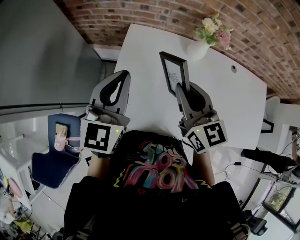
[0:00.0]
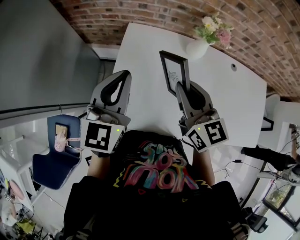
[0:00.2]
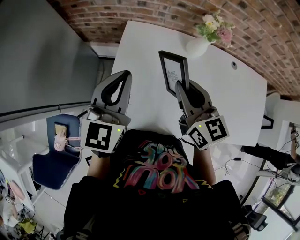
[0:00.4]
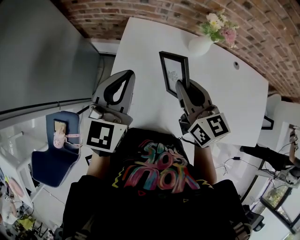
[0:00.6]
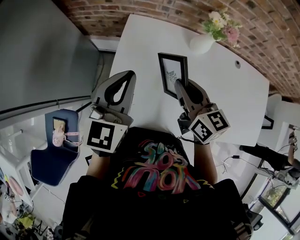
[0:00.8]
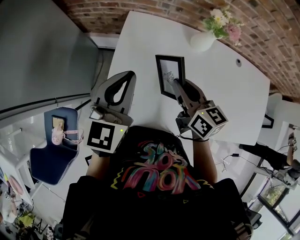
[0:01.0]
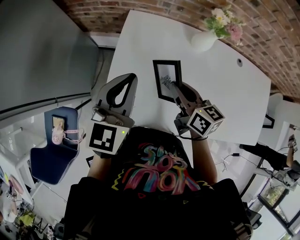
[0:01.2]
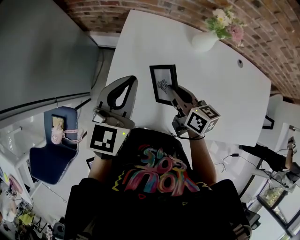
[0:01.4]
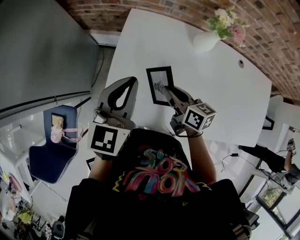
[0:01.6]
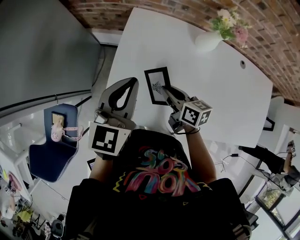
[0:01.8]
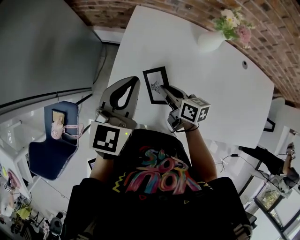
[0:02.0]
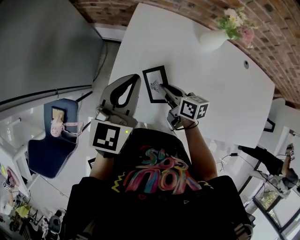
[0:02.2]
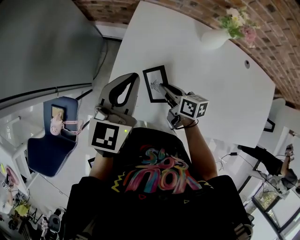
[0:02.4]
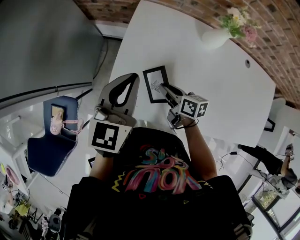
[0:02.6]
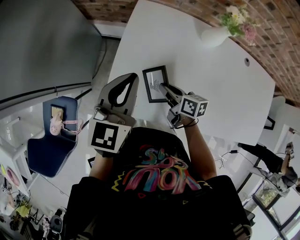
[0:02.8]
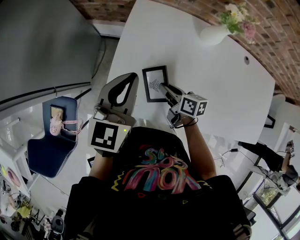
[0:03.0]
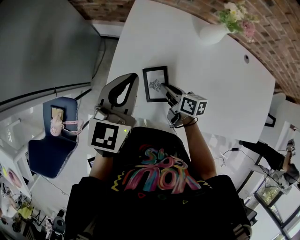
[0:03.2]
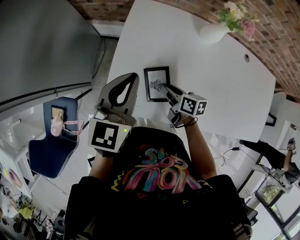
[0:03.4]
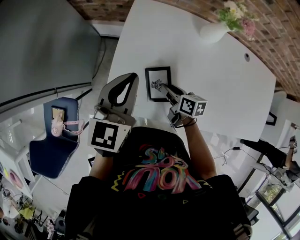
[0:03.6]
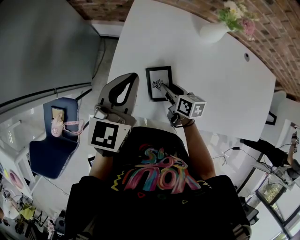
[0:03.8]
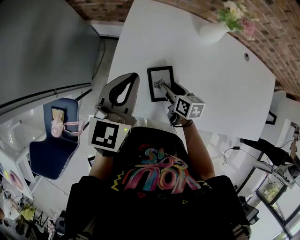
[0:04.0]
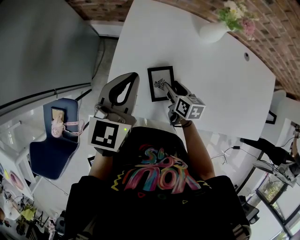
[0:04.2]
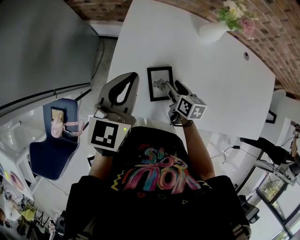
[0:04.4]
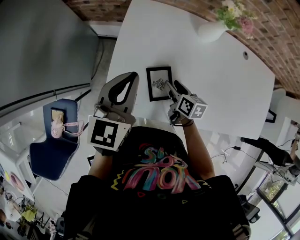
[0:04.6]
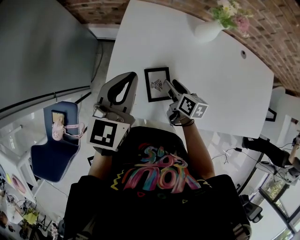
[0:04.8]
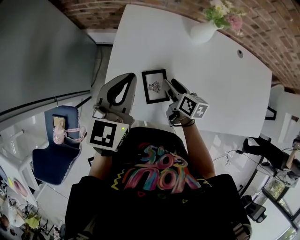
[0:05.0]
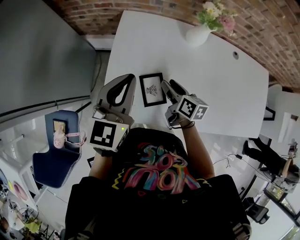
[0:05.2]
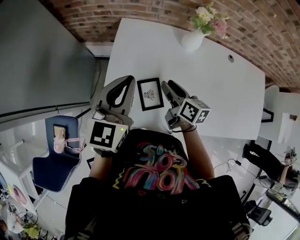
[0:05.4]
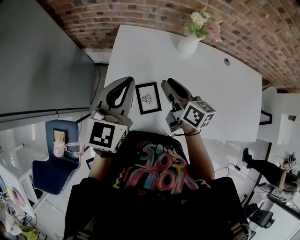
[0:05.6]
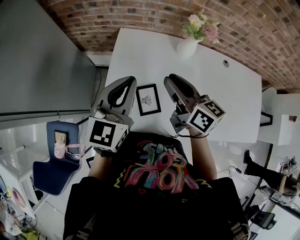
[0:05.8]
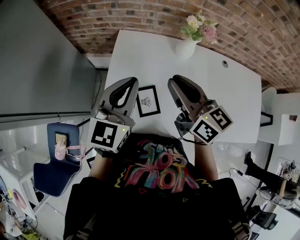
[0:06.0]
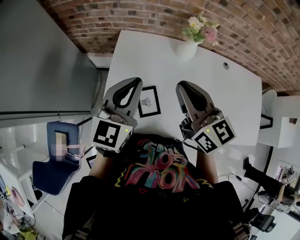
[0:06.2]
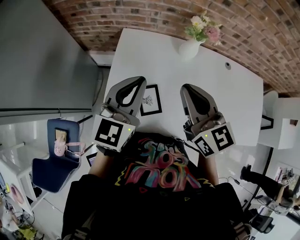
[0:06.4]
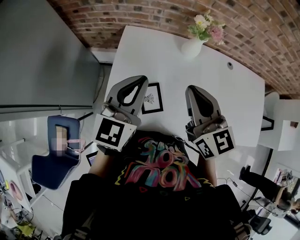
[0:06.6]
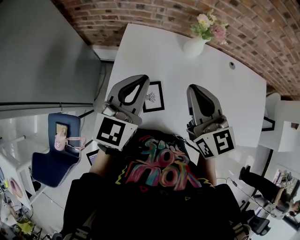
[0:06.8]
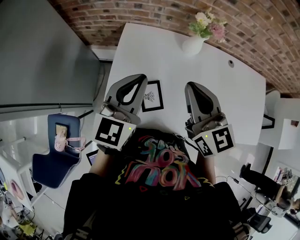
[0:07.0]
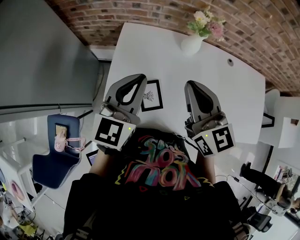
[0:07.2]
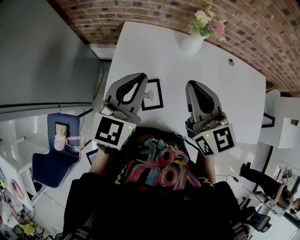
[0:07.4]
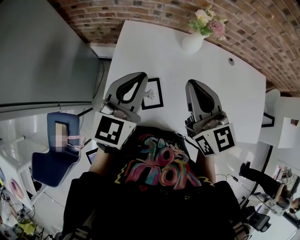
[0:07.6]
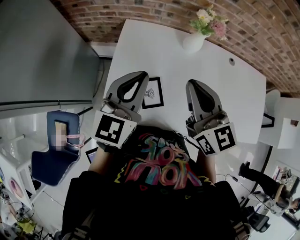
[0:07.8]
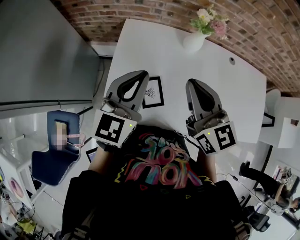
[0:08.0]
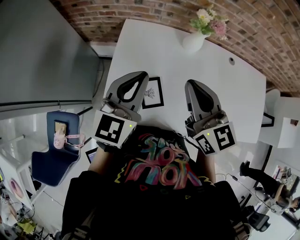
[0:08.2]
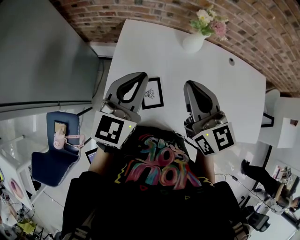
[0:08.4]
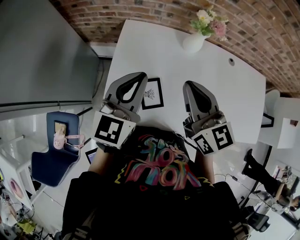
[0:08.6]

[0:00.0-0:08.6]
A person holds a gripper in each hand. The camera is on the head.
0:00.0 to 0:01.4: The left gripper goes approximately 5 cm downward, while the right gripper shifts about 15 cm downward, and rotates approximately 40 degrees.
0:01.4 to 0:02.8: The right gripper travels downward by approximately 10 cm.
0:02.8 to 0:04.4: The right gripper shifts by approximately 5 cm, turns by approximately 20 degrees, and opens up.
0:04.4 to 0:05.8: The left gripper moves upward, approximately 10 cm. The right gripper goes about 30 cm upward, angles its fingers upward, by approximately 30 degrees, and closes up.
0:05.8 to 0:07.2: The right gripper shifts about 5 cm upward, turns by some 30 degrees, and closes up.
0:07.2 to 0:08.6: The grippers stay close to where they were, moving slightly.

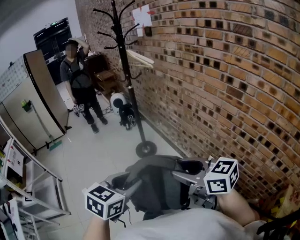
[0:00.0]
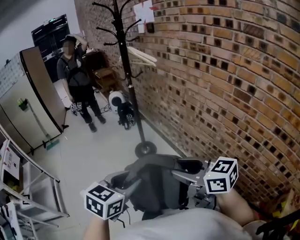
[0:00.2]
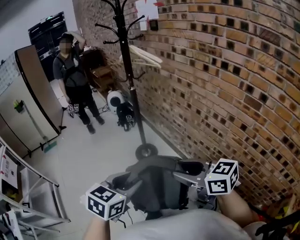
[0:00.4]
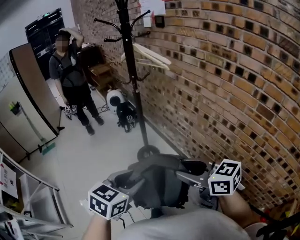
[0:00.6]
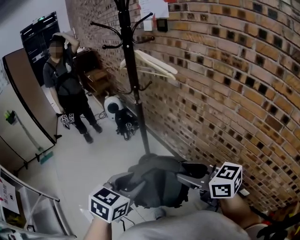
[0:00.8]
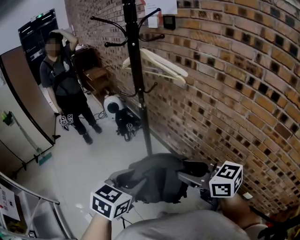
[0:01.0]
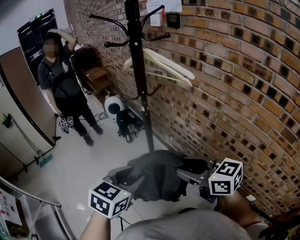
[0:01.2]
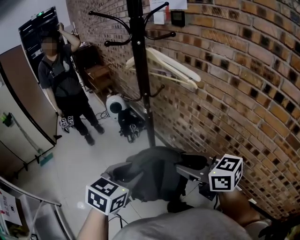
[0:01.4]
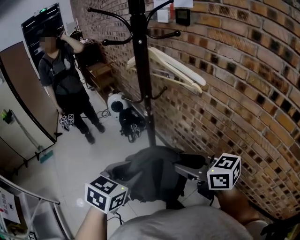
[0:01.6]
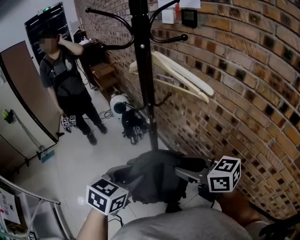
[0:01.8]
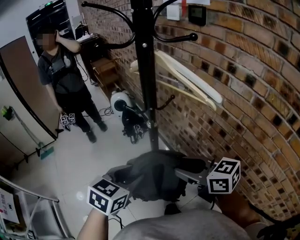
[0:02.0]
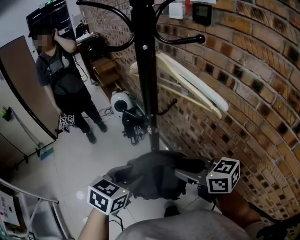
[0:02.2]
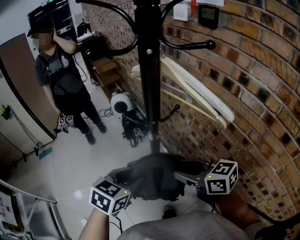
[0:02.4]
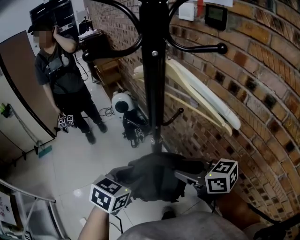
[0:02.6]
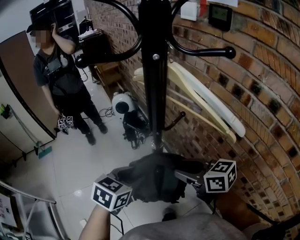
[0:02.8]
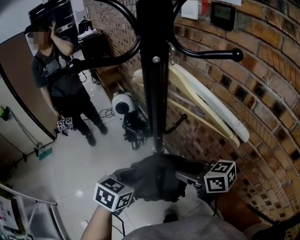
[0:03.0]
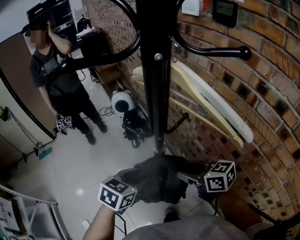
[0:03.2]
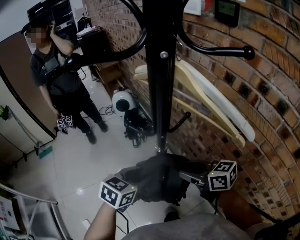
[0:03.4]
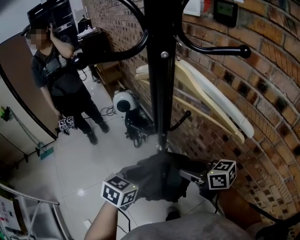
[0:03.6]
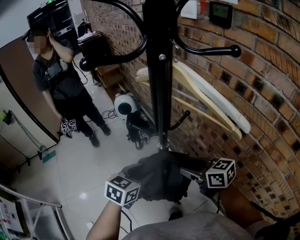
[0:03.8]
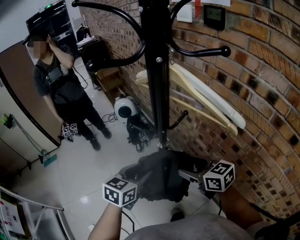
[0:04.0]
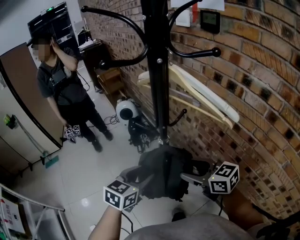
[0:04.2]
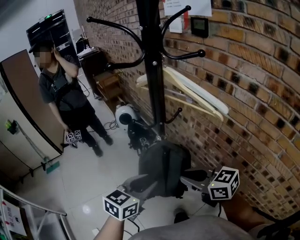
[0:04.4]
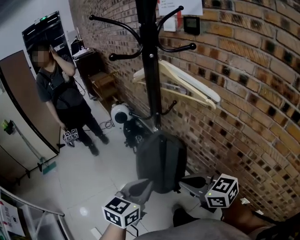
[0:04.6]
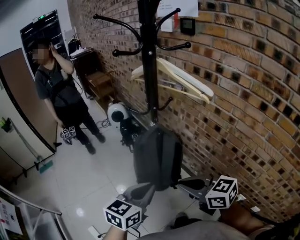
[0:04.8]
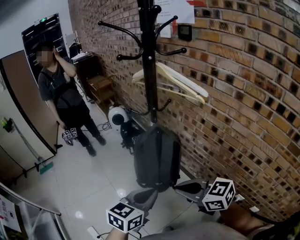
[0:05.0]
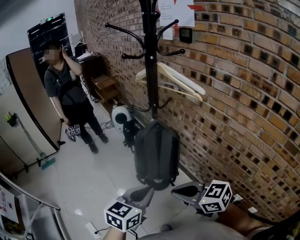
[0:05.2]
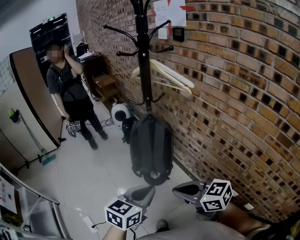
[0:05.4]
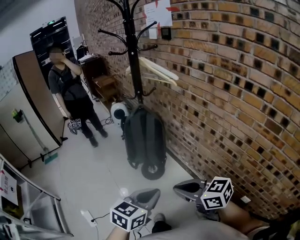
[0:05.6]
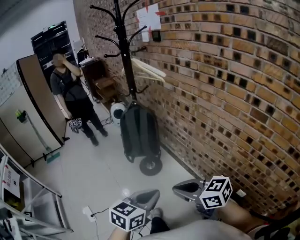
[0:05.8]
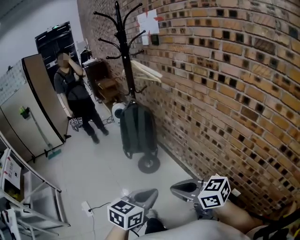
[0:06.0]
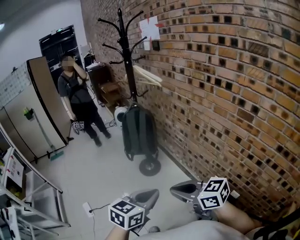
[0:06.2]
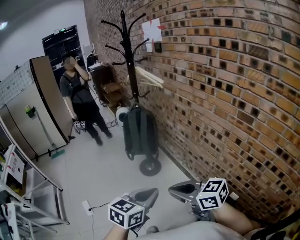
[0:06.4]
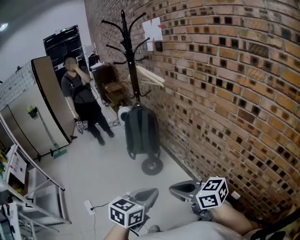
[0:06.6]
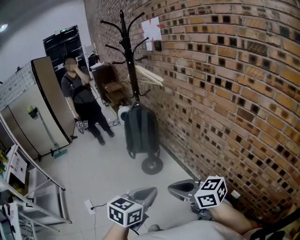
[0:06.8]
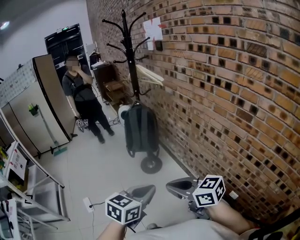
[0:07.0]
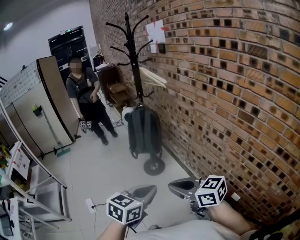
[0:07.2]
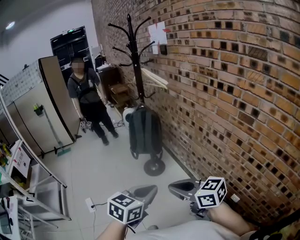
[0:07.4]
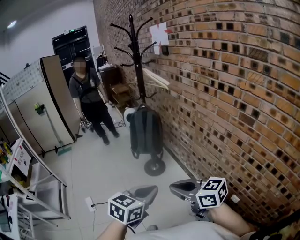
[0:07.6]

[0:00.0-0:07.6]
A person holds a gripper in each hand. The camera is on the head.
0:00.0 to 0:01.6: The two grippers travel together, forward, roughly 50 cm.
0:01.6 to 0:03.0: The right gripper goes some 20 cm forward. The left gripper travels forward and downward by about 20 cm.
0:03.0 to 0:04.6: The grippers both shift backward by approximately 15 cm. The left gripper closes its fingers; the right gripper closes up.
0:04.6 to 0:06.0: The two grippers go some 40 cm backward.
0:06.0 to 0:07.6: The left gripper ends up approximately 5 cm from where it was. Meanwhile the right gripper ends up some 5 cm from where it was.

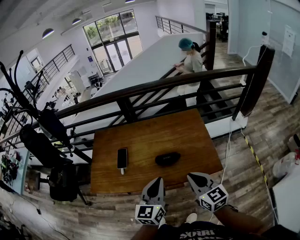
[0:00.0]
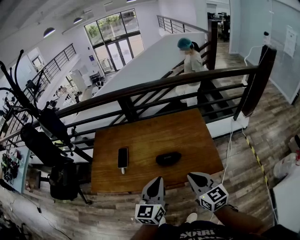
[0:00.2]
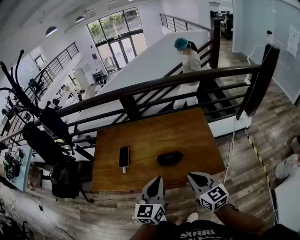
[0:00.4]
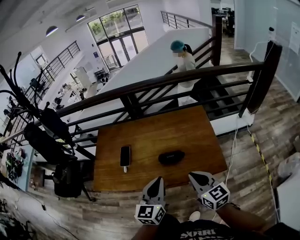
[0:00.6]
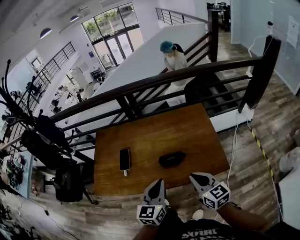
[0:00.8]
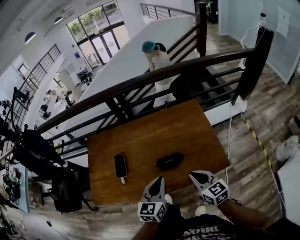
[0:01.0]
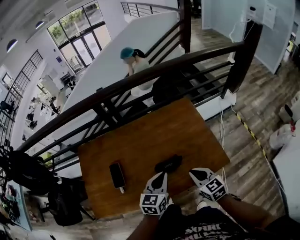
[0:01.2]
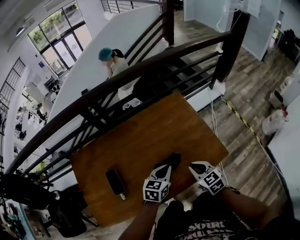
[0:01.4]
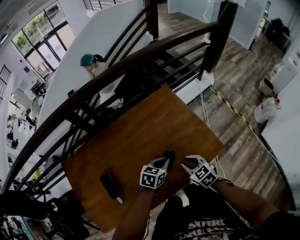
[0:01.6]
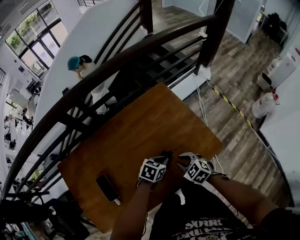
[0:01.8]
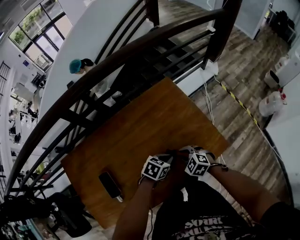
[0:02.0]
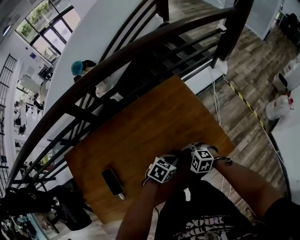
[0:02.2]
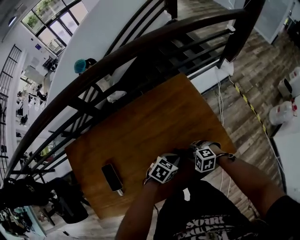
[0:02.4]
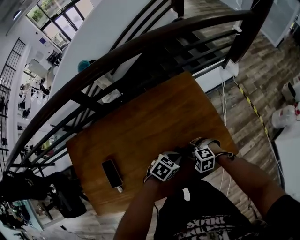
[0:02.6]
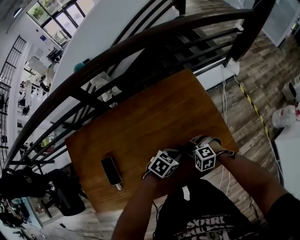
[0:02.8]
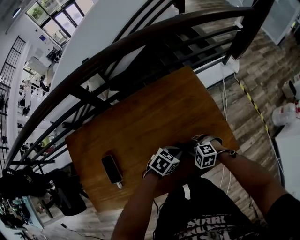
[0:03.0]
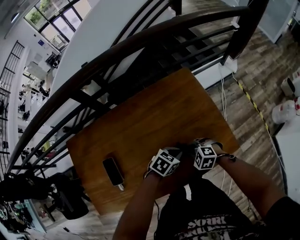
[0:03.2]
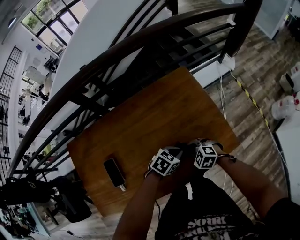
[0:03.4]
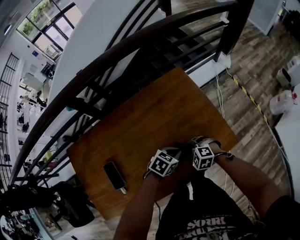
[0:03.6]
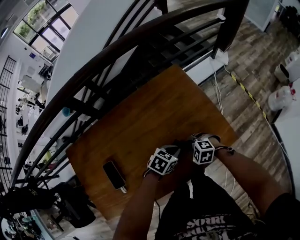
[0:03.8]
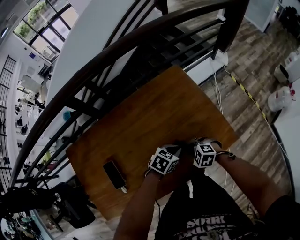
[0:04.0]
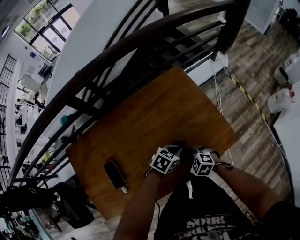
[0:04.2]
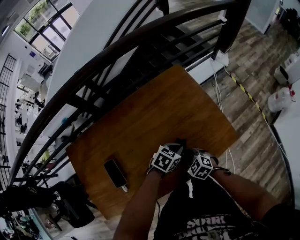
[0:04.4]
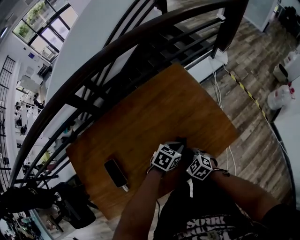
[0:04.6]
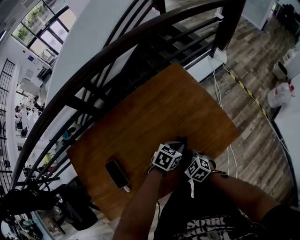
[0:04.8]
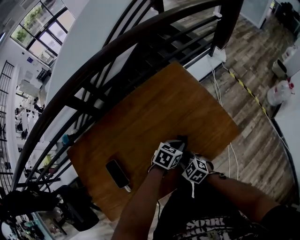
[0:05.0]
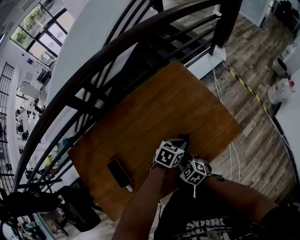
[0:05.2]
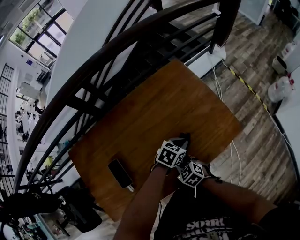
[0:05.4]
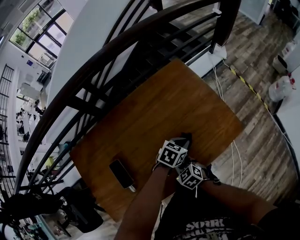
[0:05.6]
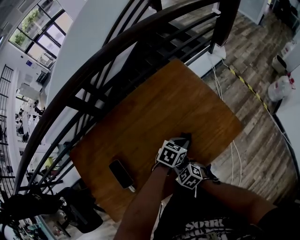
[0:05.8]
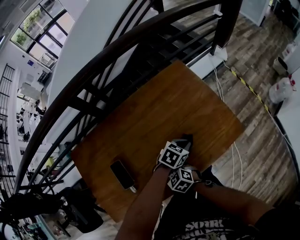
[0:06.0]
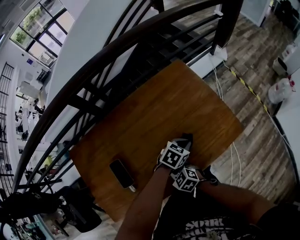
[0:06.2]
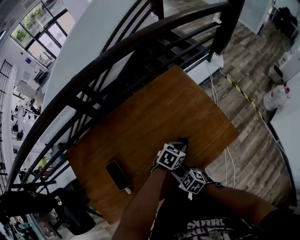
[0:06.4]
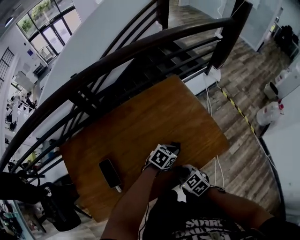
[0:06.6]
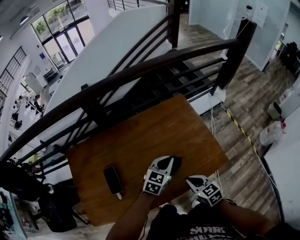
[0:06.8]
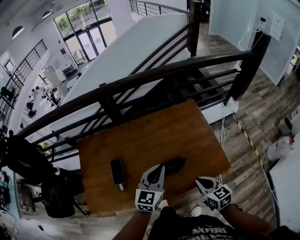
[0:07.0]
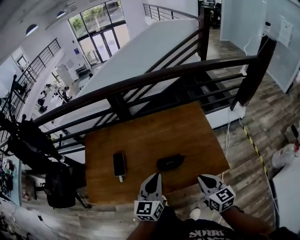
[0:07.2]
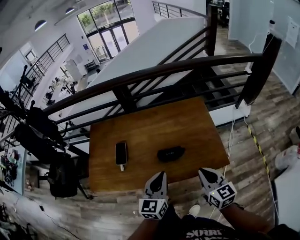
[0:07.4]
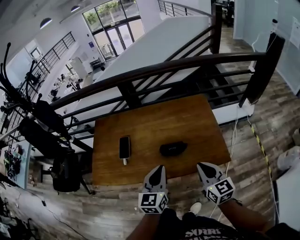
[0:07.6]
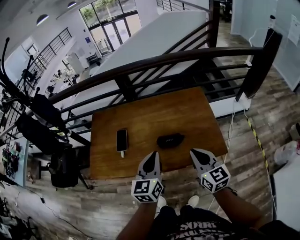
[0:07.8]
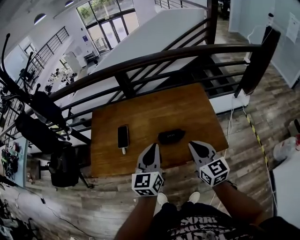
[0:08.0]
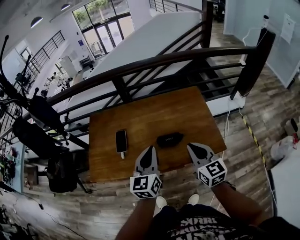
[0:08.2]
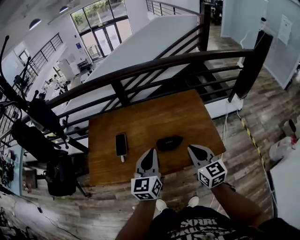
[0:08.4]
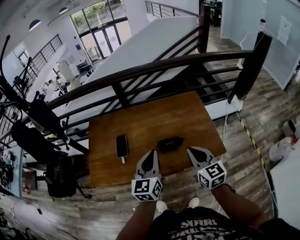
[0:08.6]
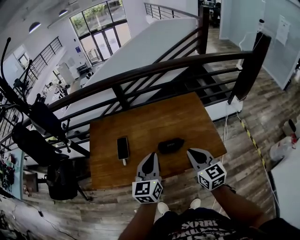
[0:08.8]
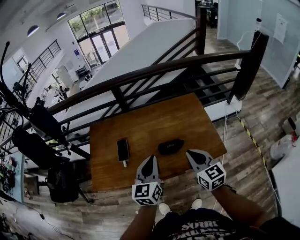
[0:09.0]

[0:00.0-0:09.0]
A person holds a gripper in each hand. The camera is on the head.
0:00.0 to 0:01.6: Both grippers travel together downward, approximately 25 cm. The right gripper angles its fingers downward, by some 30 degrees; the left gripper tips its fingers downward by approximately 30 degrees.
0:01.6 to 0:03.0: The right gripper heads downward, covering about 10 cm, and twists approximately 50 degrees counterclockwise, seen from behind. Meanwhile the left gripper shifts by approximately 5 cm.
0:03.0 to 0:04.4: The right gripper changes place by some 5 cm, and swivels some 40 degrees.
0:04.4 to 0:06.0: The right gripper changes place by roughly 15 cm.
0:06.0 to 0:07.6: The grippers both shift upward by approximately 25 cm. The left gripper tips its fingers upward by some 30 degrees. The right gripper tilts its fingers roughly 40 degrees upward.
0:07.6 to 0:09.0: The two grippers go approximately 5 cm to the left.
